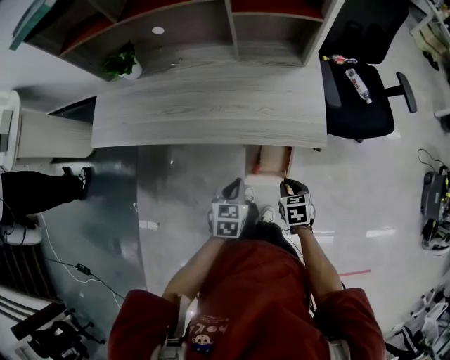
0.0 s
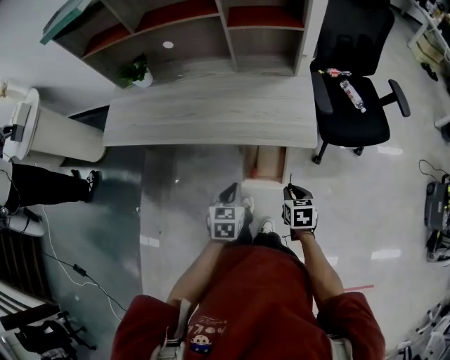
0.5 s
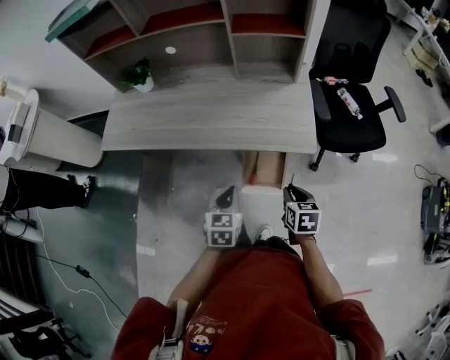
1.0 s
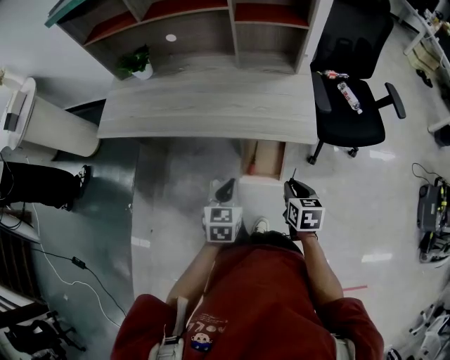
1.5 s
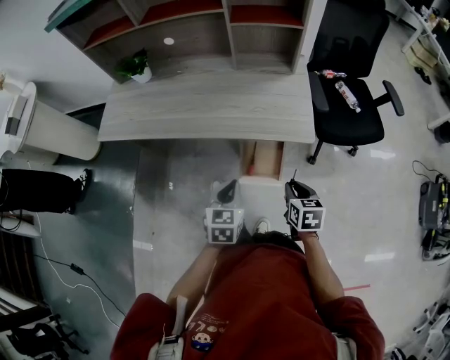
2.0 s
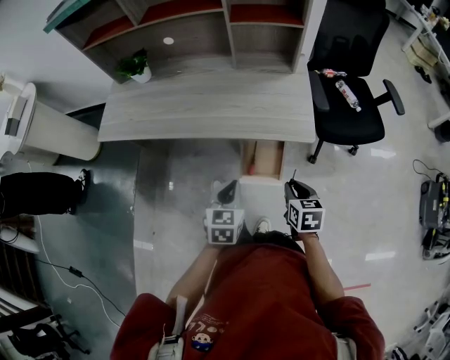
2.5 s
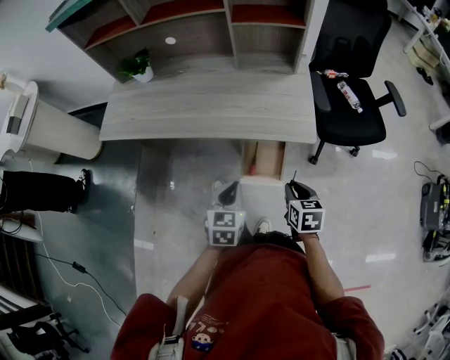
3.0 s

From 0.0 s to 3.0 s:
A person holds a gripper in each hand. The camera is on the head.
From 0.0 s to 1.5 s: The right gripper heads upward and backward, covering roughly 10 cm. Meanwhile the left gripper travels backward and upward by about 10 cm.
From 1.5 s to 3.0 s: The grippers move only a little.

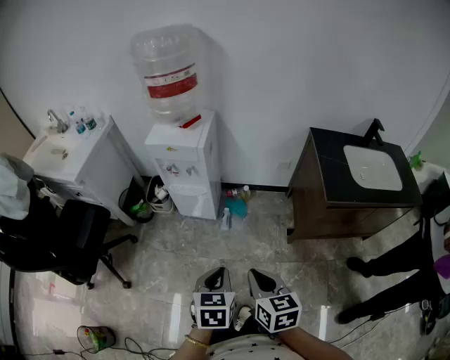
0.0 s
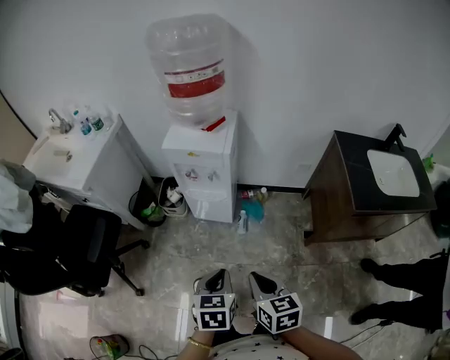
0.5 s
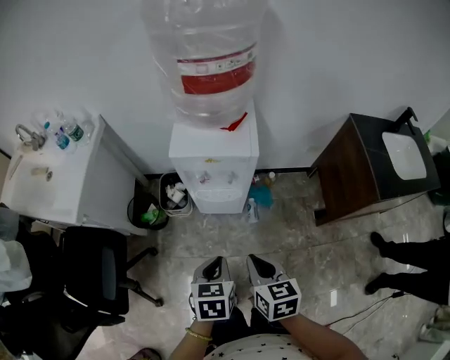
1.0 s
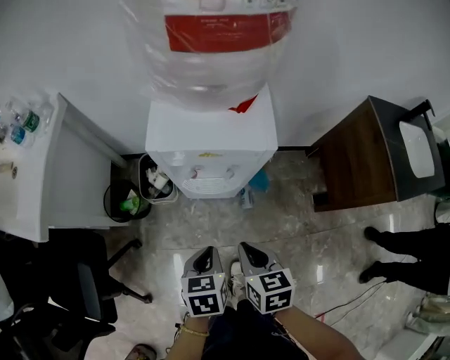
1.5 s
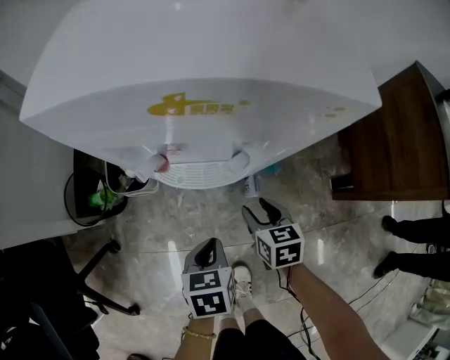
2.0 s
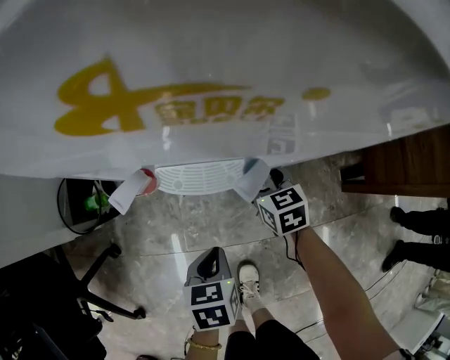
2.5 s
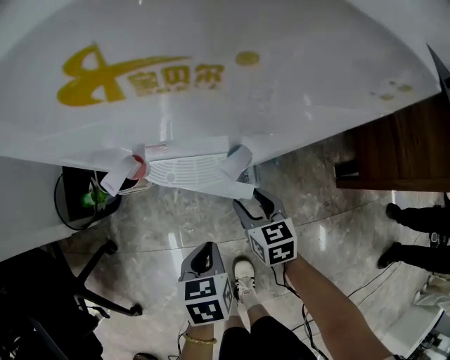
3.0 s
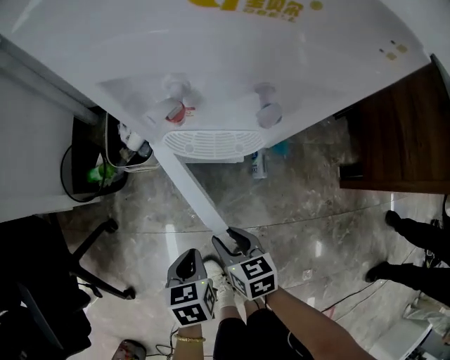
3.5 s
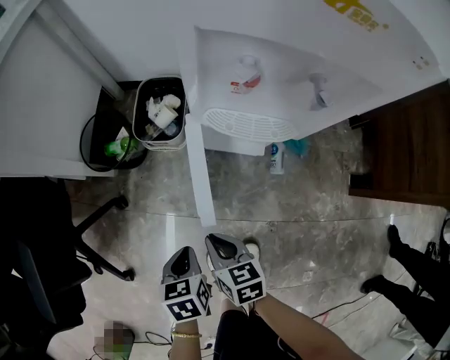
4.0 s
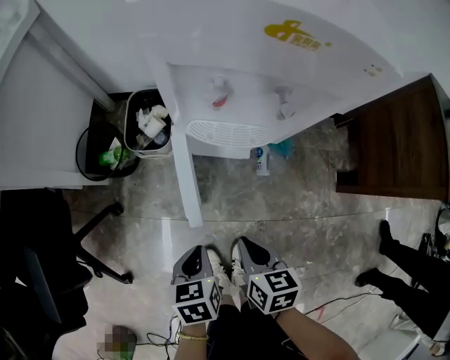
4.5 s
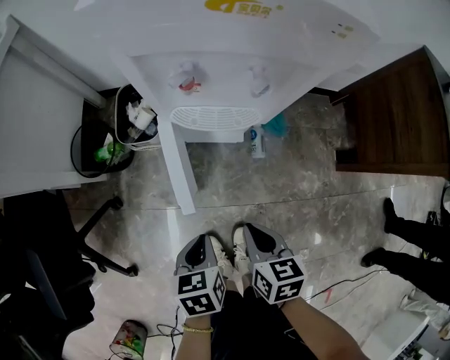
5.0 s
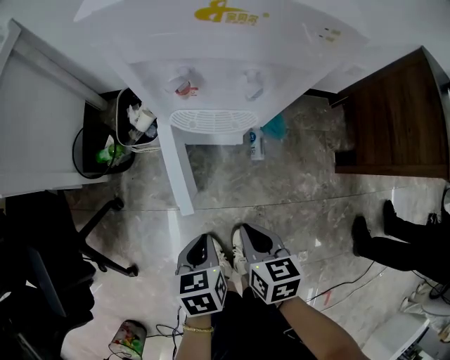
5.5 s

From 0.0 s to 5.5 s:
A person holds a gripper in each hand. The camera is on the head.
From 0.0 s to 2.0 s: The pair of grippers is taken forward and to the left, some 40 cm. Both grippers move downward, approximately 40 cm. The right gripper changes its angle by approximately 20 degrees, and opens its fingers, while the left gripper turns by about 20 degrees.
From 2.0 s to 3.5 s: The left gripper goes about 15 cm backward, to the left and downward, while the right gripper shifts approximately 20 cm backward and to the left, and opens, then closes again.
From 3.5 s to 5.5 s: The right gripper moves upward and backward, about 15 cm, goes to the left and returns, some 10 cm each way, and closes; the left gripper goes about 10 cm upward, and moves roughly 10 cm to the left and comes back.

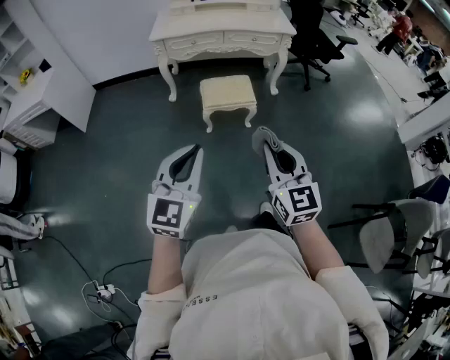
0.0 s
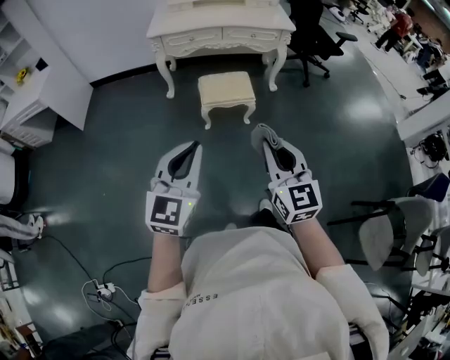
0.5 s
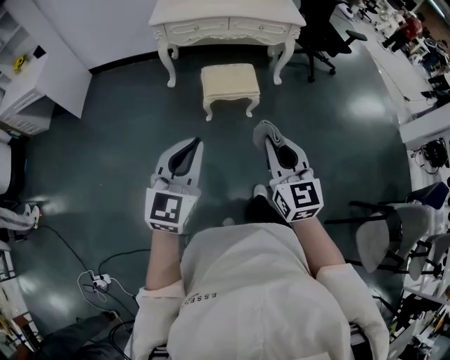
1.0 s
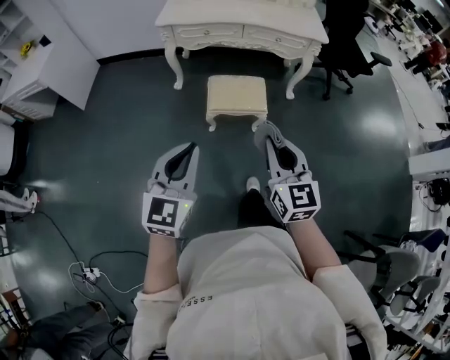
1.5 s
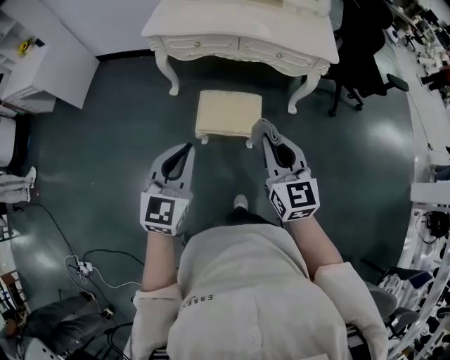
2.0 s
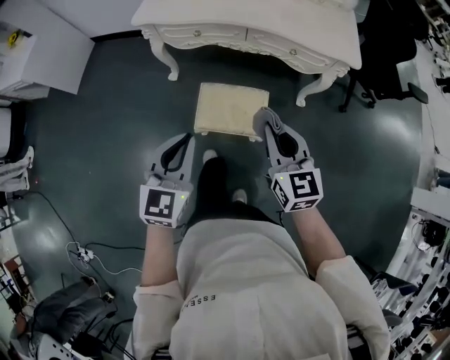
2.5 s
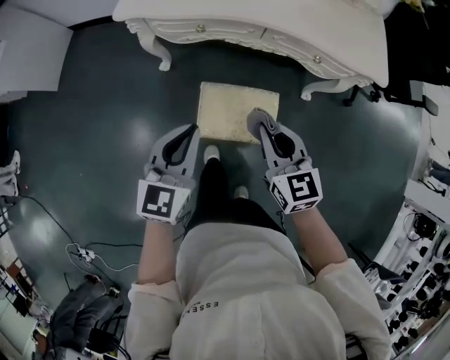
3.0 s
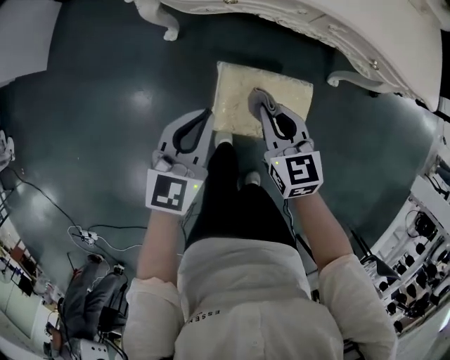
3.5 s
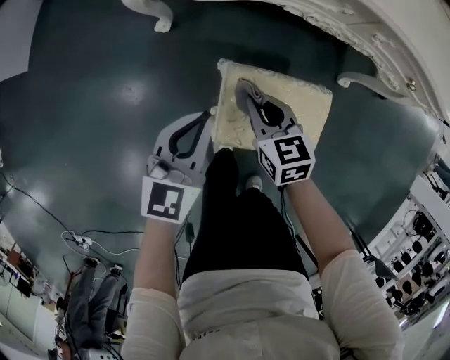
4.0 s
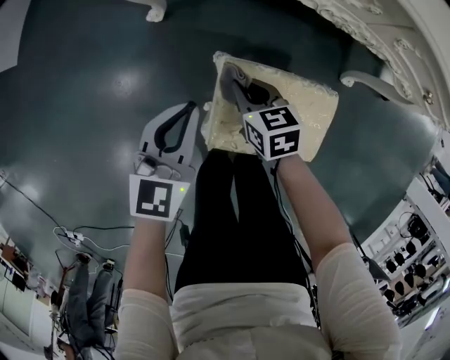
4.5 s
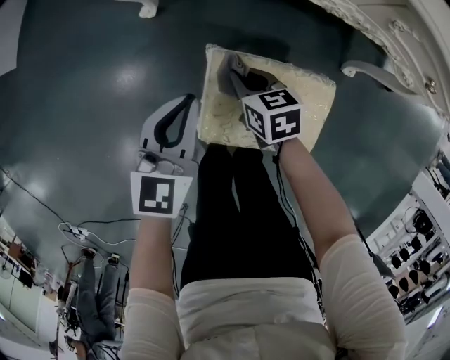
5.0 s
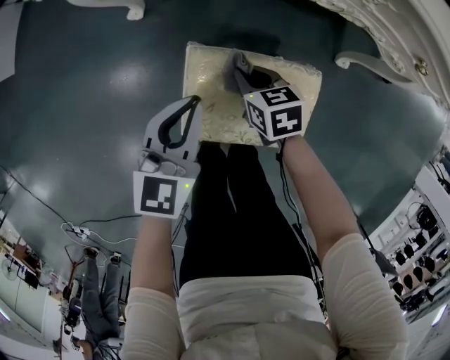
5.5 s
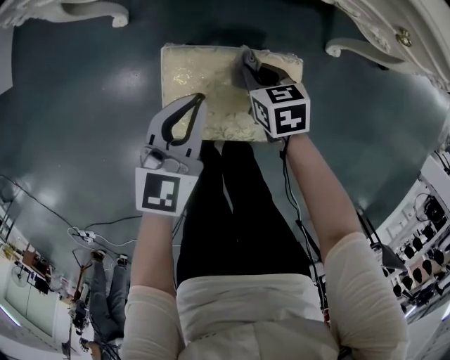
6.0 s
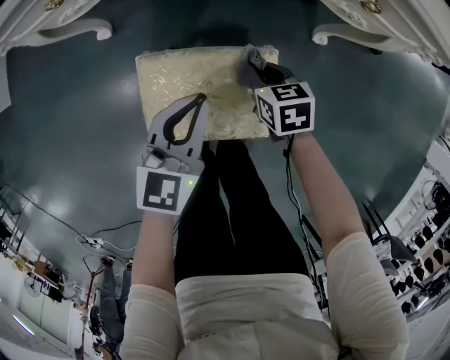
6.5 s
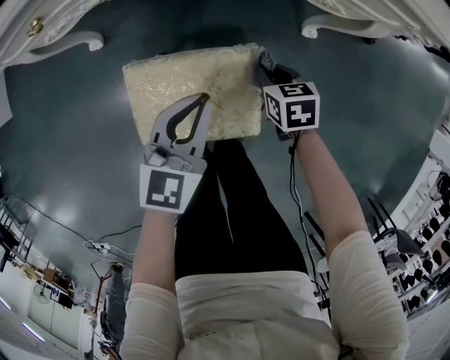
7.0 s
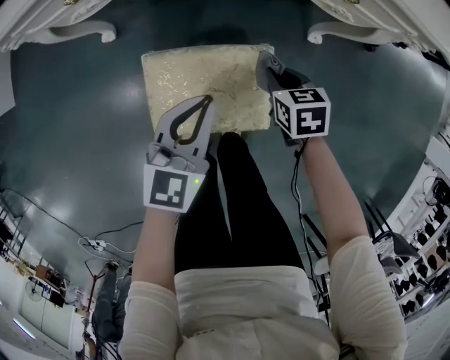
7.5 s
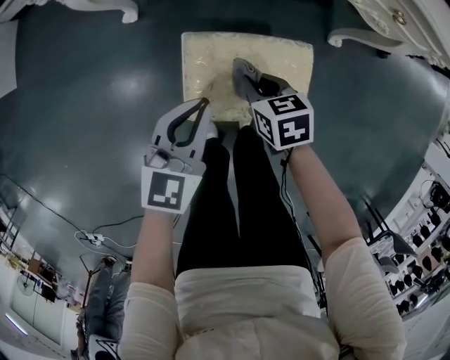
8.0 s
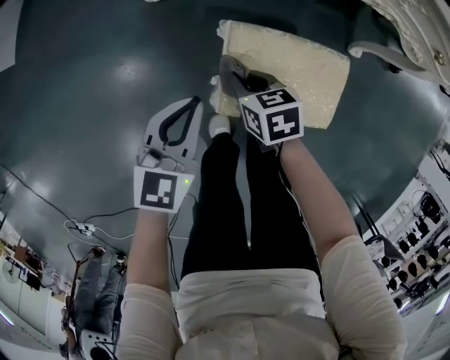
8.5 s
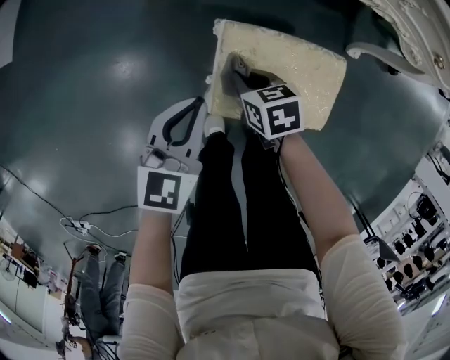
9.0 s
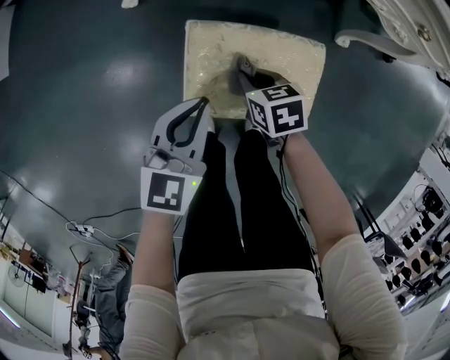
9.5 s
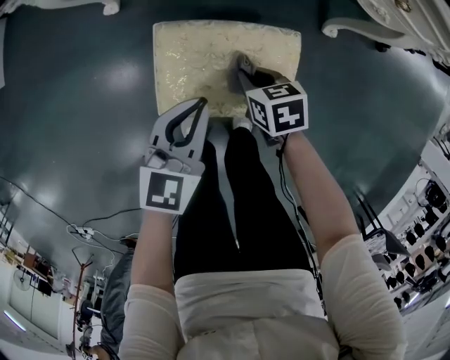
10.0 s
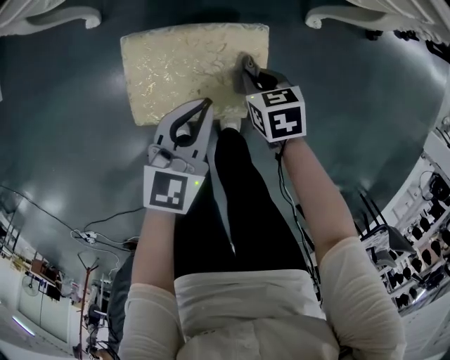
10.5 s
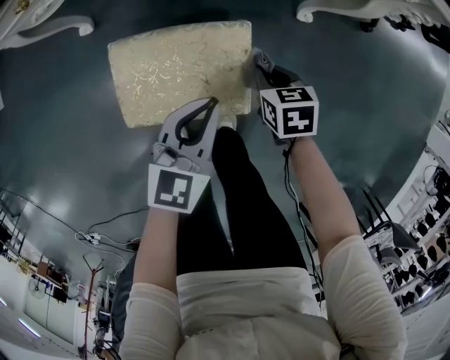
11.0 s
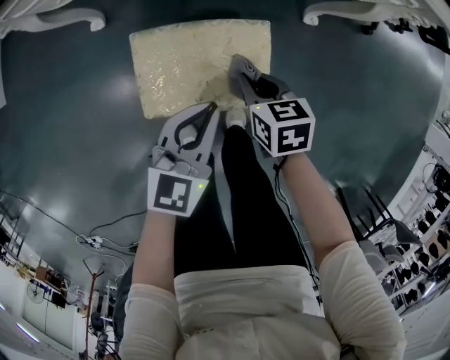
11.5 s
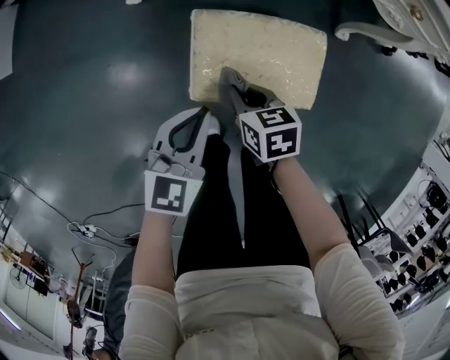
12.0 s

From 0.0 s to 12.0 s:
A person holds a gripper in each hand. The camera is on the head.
From 0.0 s to 2.0 s: The two grippers go about 40 cm forward.
From 2.0 s to 4.0 s: The left gripper shifts some 50 cm forward and downward, and rotates roughly 20 degrees; the right gripper heads downward, forward and to the left, covering approximately 60 cm, and tips its fingers downward by approximately 30 degrees.
From 4.0 s to 6.0 s: The right gripper travels to the right and downward by approximately 20 cm. Meanwhile the left gripper goes about 15 cm to the right.
From 6.0 s to 8.0 s: The left gripper heads backward, covering roughly 5 cm, and moves some 10 cm to the right and comes back. Meanwhile the right gripper travels backward and upward by roughly 10 cm, and travels to the right and back again, about 15 cm each way.
From 8.0 s to 10.0 s: The left gripper moves roughly 10 cm to the left and comes back, while the right gripper goes about 5 cm downward, and reaches roughly 15 cm to the left, then returns.
From 10.0 s to 12.0 s: Both grippers travel together to the left and backward, approximately 10 cm.

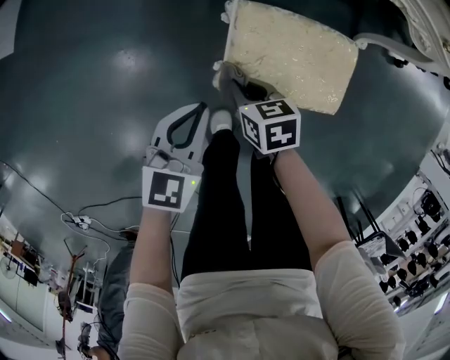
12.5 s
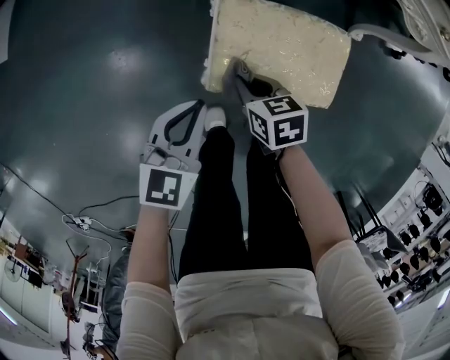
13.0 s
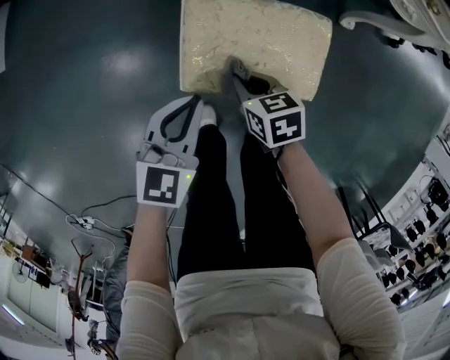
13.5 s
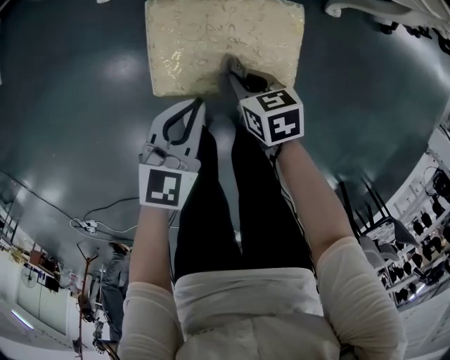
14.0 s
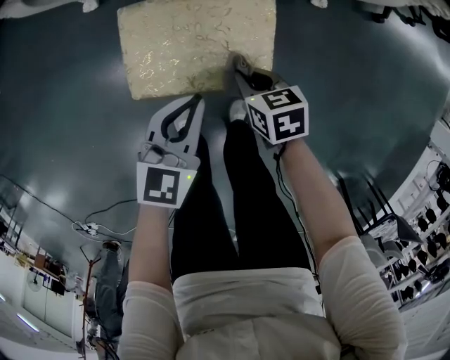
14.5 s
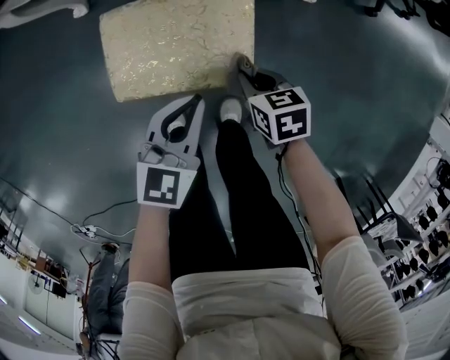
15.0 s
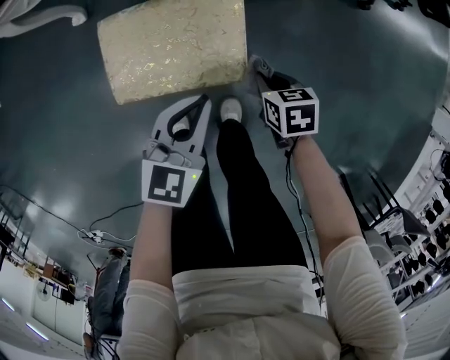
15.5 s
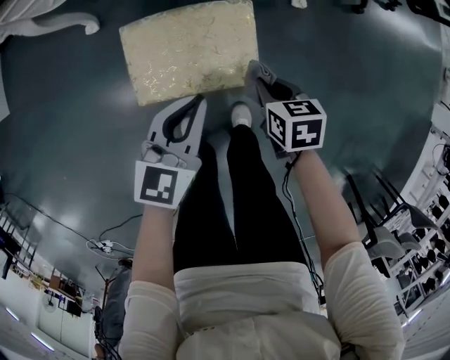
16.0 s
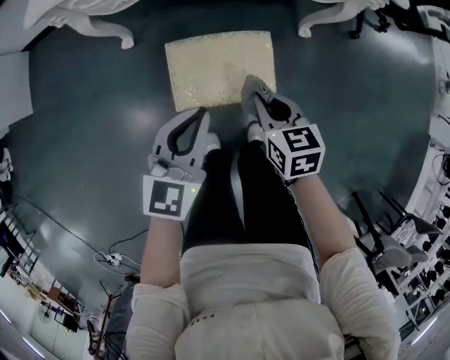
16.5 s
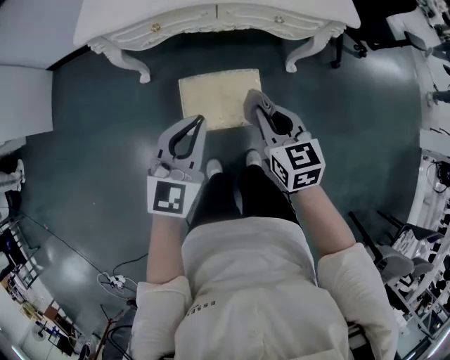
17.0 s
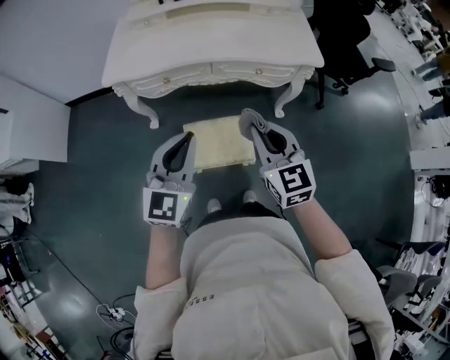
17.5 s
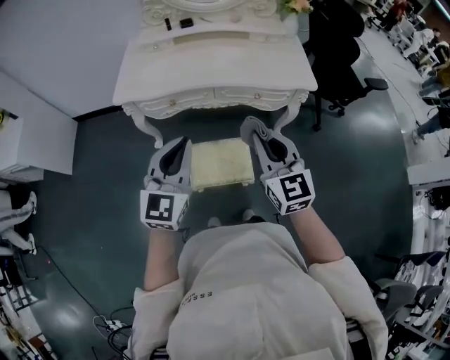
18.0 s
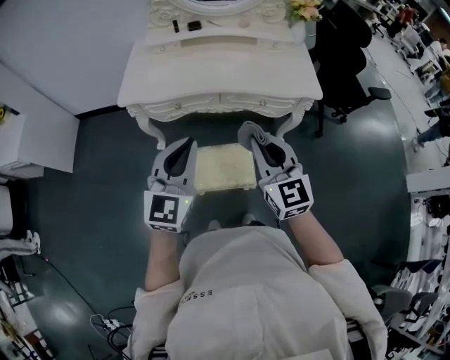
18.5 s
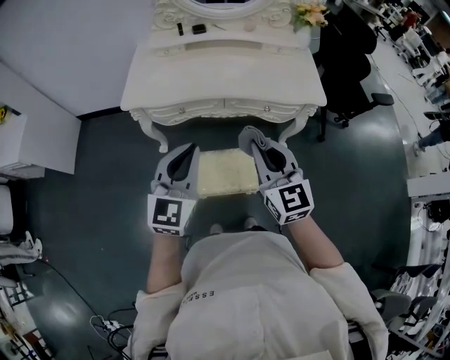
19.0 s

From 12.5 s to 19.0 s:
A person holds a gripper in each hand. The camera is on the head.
From 12.5 s to 14.5 s: The two grippers go approximately 25 cm to the right.
From 14.5 s to 17.0 s: The two grippers go roughly 35 cm upward. The right gripper rotates approximately 30 degrees; the left gripper changes its angle by roughly 20 degrees.
From 17.0 s to 19.0 s: Both grippers move upward, about 20 cm. The right gripper changes its angle by some 30 degrees.
